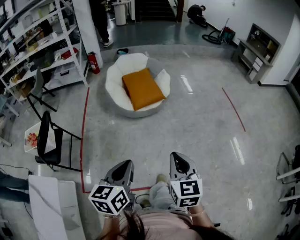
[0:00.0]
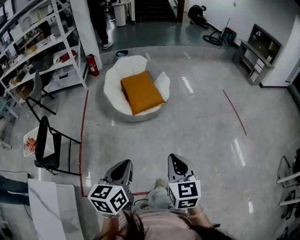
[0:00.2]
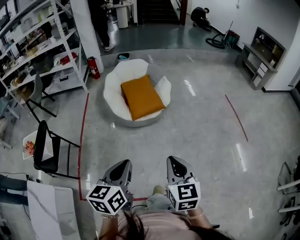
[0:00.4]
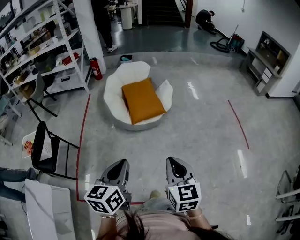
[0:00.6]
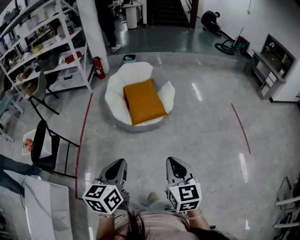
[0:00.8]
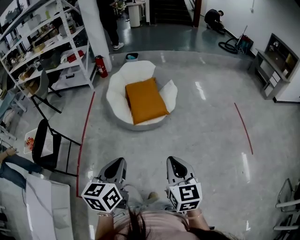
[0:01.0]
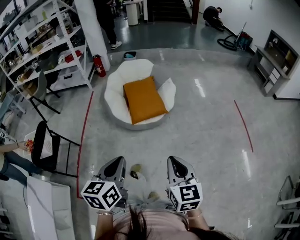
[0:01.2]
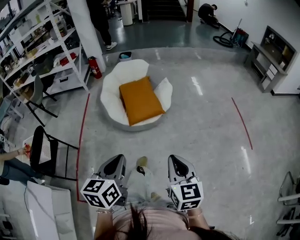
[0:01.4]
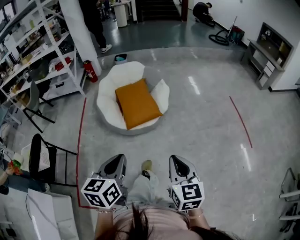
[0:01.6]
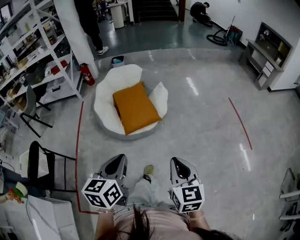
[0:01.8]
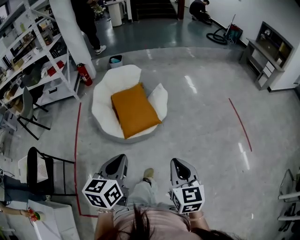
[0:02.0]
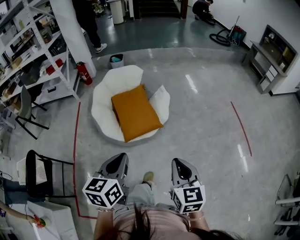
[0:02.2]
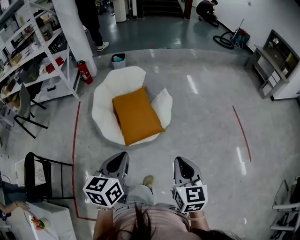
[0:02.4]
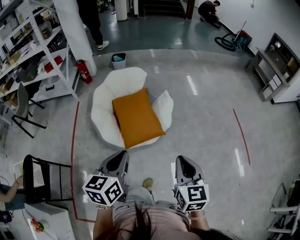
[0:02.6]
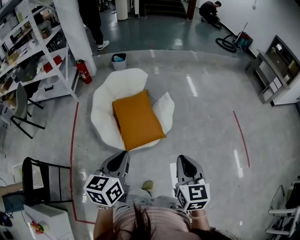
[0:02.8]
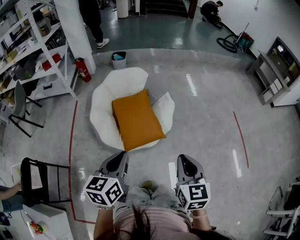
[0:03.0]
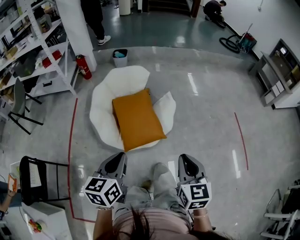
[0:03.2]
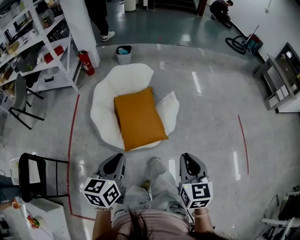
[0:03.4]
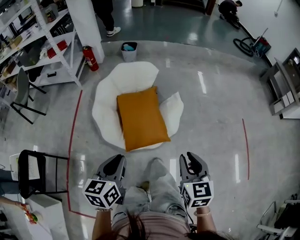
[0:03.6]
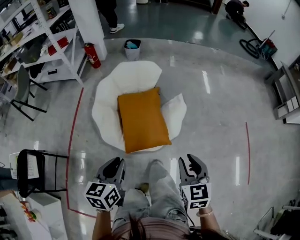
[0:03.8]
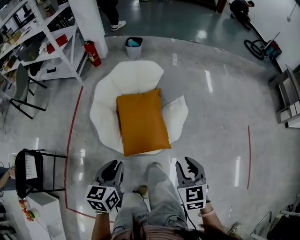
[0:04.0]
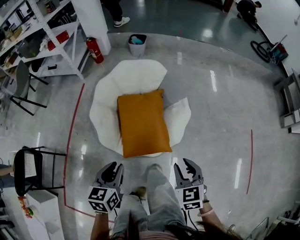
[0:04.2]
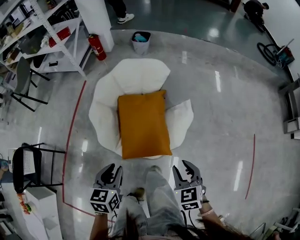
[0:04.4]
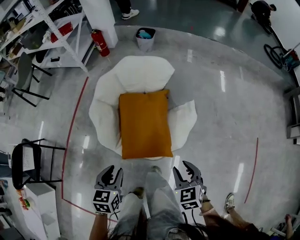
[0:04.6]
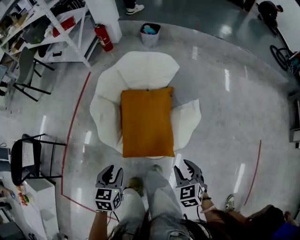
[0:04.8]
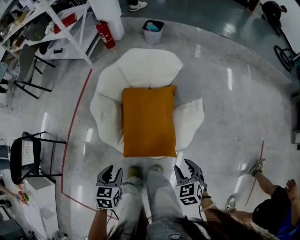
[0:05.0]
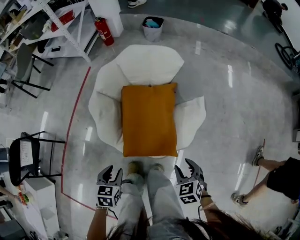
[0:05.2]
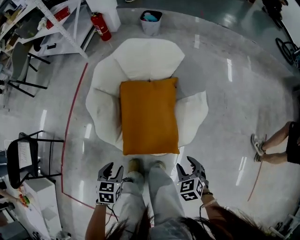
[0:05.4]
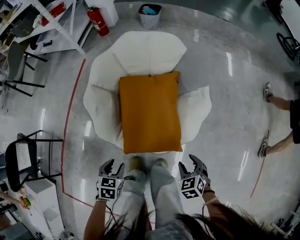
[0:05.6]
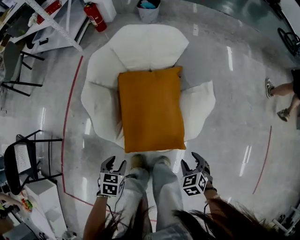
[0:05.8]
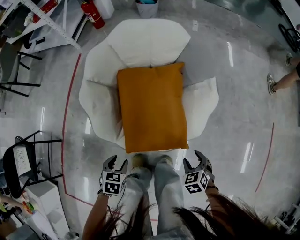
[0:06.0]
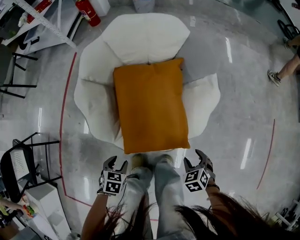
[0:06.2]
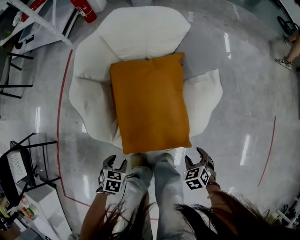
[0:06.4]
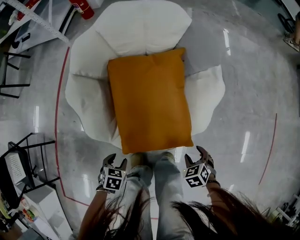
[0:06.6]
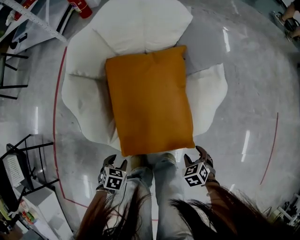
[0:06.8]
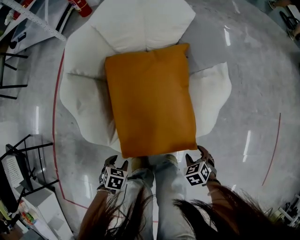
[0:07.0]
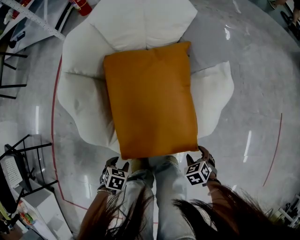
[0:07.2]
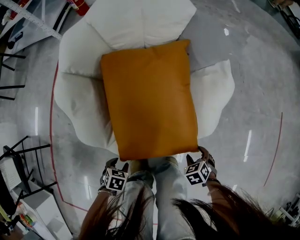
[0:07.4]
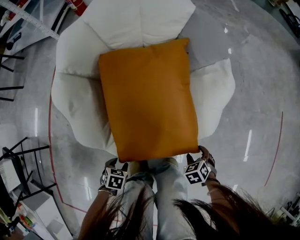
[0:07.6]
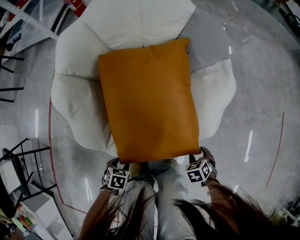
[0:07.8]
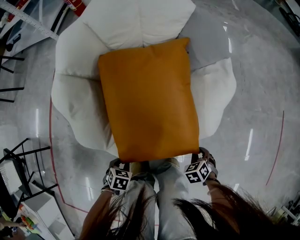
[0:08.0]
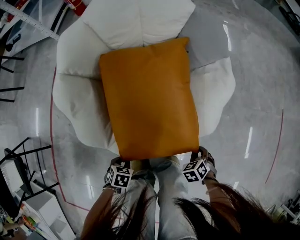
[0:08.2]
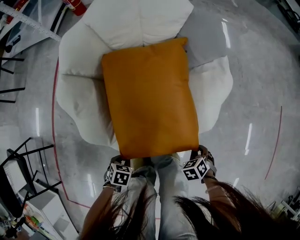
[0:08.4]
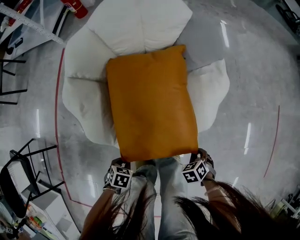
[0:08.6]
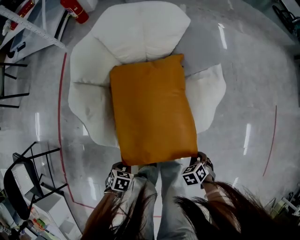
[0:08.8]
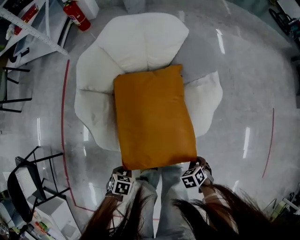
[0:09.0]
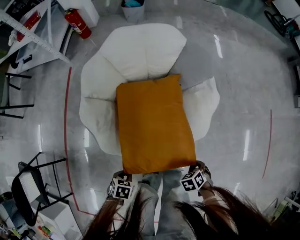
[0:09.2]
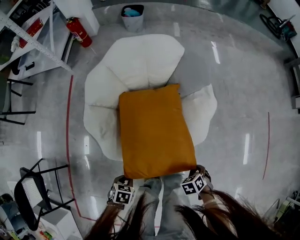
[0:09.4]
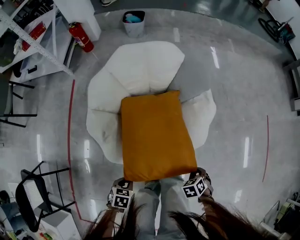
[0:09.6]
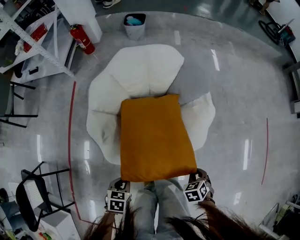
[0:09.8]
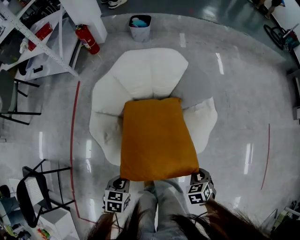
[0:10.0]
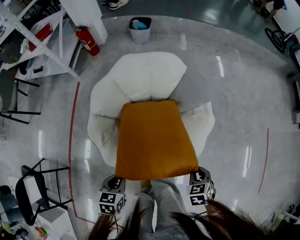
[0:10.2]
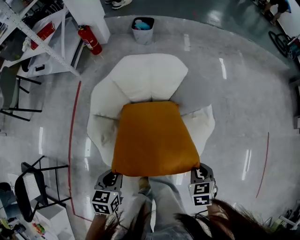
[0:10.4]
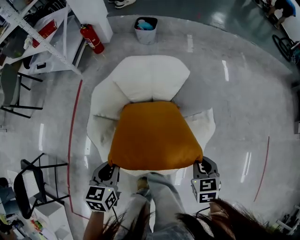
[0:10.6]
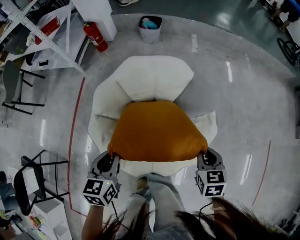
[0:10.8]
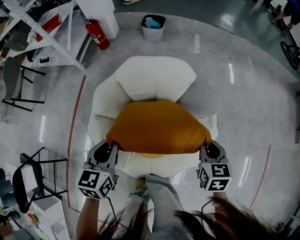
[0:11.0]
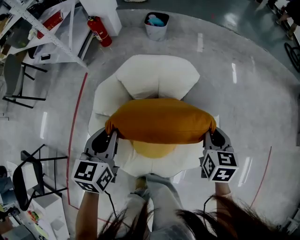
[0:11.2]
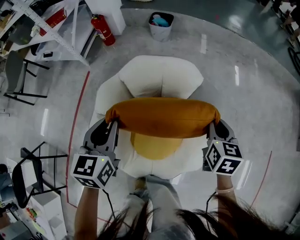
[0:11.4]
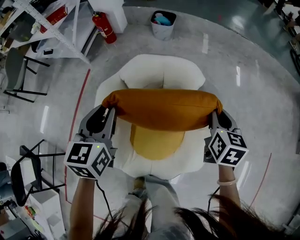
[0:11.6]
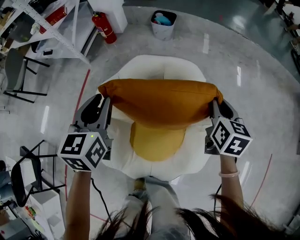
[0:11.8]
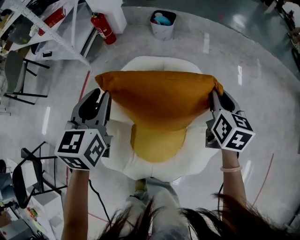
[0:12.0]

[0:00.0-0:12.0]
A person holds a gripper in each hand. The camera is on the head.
0:00.0 to 0:01.6: The grippers both shift forward and to the right by approximately 30 cm.
0:01.6 to 0:03.0: Both grippers travel together forward, roughly 30 cm.
0:03.0 to 0:04.4: The right gripper goes about 30 cm forward and downward, changes its angle by roughly 30 degrees, and opens. Meanwhile the left gripper shifts roughly 25 cm downward and forward, changes its angle by approximately 20 degrees, and opens.
0:04.4 to 0:06.0: The two grippers go roughly 30 cm downward. The left gripper changes its angle by approximately 30 degrees, and opens. The right gripper swivels approximately 20 degrees, and opens its fingers.
0:06.0 to 0:07.6: The two grippers go some 25 cm downward.
0:07.6 to 0:09.0: Both grippers move upward, about 15 cm. The right gripper closes its fingers, while the left gripper closes up.
0:09.0 to 0:10.4: The two grippers go roughly 25 cm upward. The left gripper turns by roughly 40 degrees, while the right gripper changes its angle by roughly 30 degrees.
0:10.4 to 0:12.0: The left gripper shifts roughly 35 cm forward and upward, and turns by about 30 degrees. The right gripper shifts some 40 cm forward, and turns by some 30 degrees.

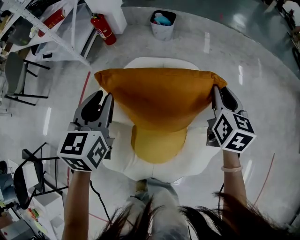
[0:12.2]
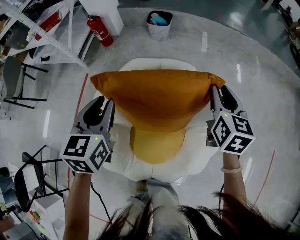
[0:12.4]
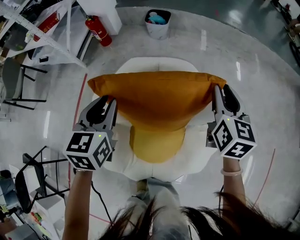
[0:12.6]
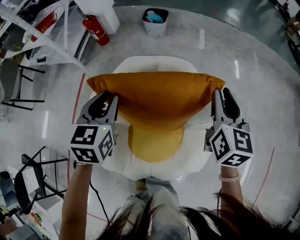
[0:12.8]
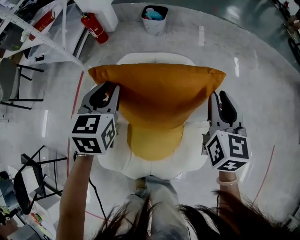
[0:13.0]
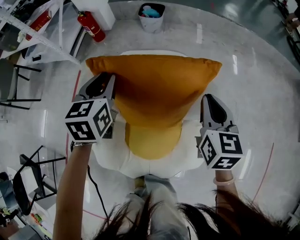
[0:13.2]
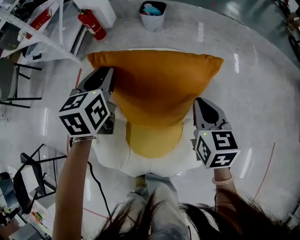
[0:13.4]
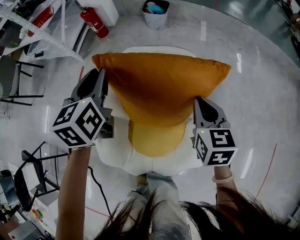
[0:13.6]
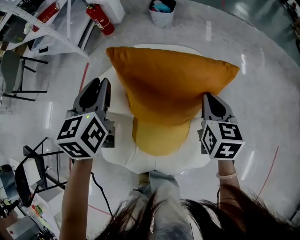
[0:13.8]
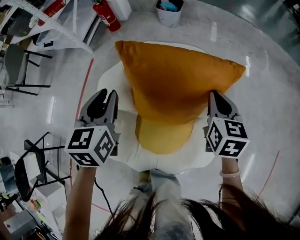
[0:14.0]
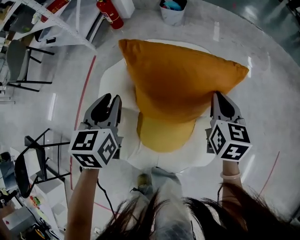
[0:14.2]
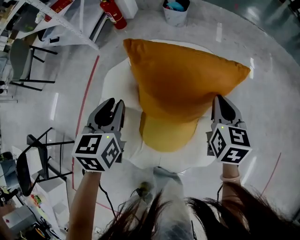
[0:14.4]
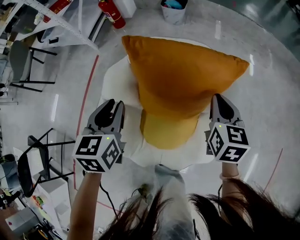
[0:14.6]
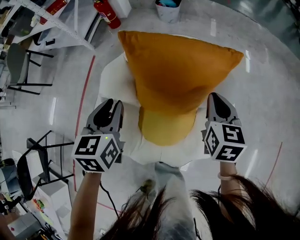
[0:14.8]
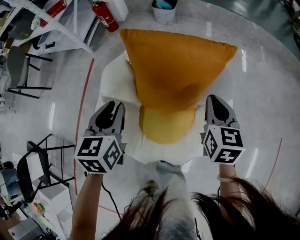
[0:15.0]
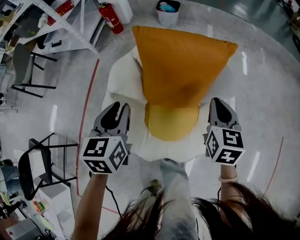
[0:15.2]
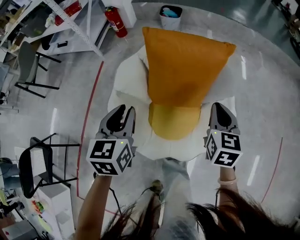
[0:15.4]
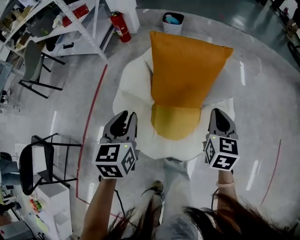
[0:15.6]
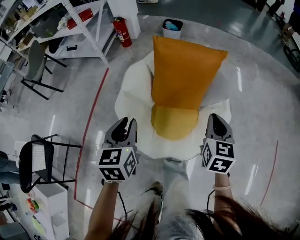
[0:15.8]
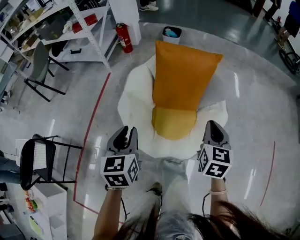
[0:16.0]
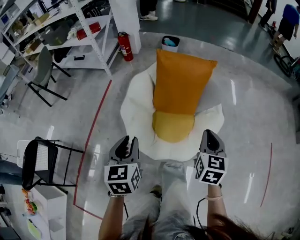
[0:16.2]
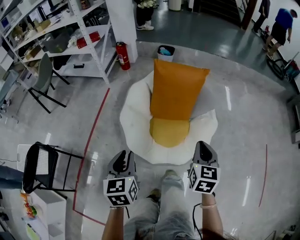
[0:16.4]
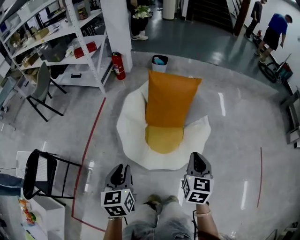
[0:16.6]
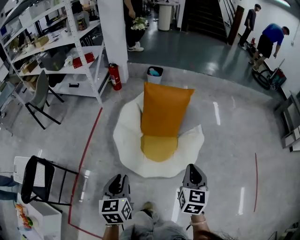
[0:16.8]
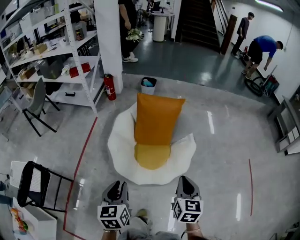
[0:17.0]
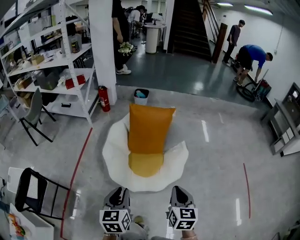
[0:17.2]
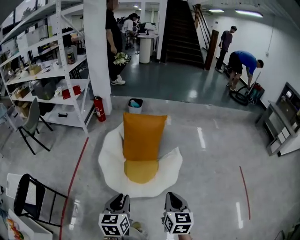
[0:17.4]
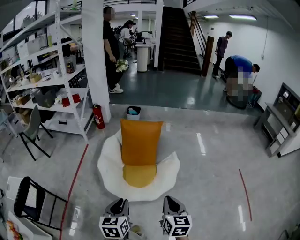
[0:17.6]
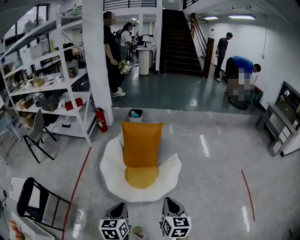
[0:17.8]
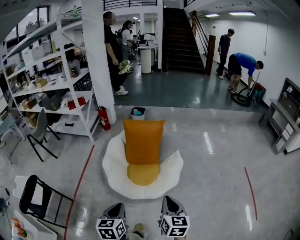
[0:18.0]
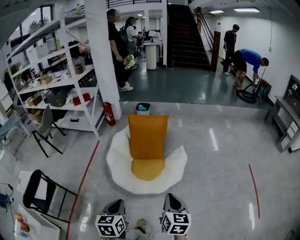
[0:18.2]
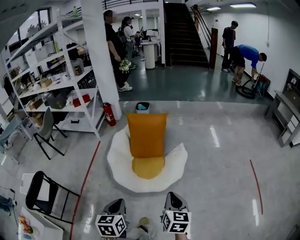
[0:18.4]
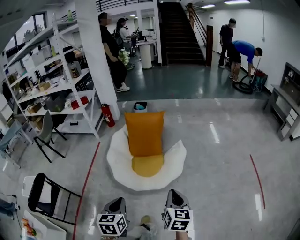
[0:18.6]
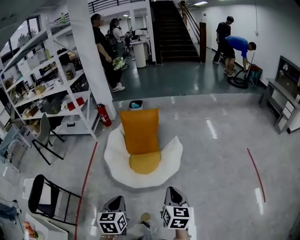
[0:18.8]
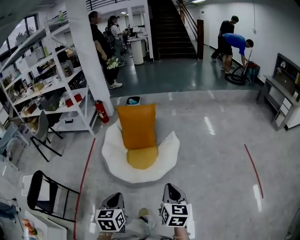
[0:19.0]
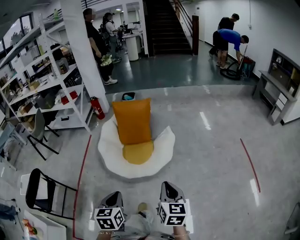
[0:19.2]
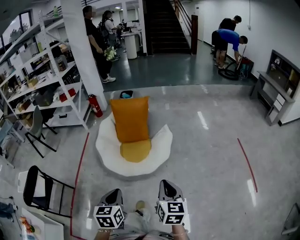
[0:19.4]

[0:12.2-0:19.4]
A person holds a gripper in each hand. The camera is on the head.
0:12.2 to 0:13.6: The left gripper is displaced forward by about 5 cm. Meanwhile the right gripper goes about 10 cm backward and downward.
0:13.6 to 0:15.0: The right gripper goes approximately 10 cm backward. Meanwhile the left gripper is displaced backward by roughly 20 cm.
0:15.0 to 0:16.6: The pair of grippers is taken backward, some 40 cm. The right gripper heads upward, covering some 20 cm.
0:16.6 to 0:18.0: The right gripper moves backward, roughly 20 cm. Meanwhile the left gripper goes about 20 cm backward and to the right.
0:18.0 to 0:19.4: Both grippers move backward and to the right, about 15 cm.

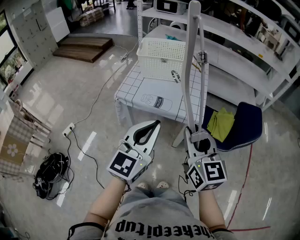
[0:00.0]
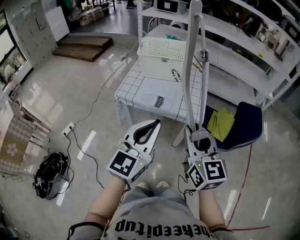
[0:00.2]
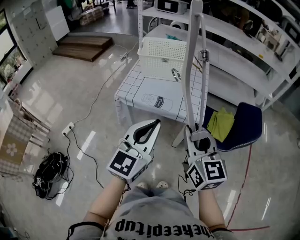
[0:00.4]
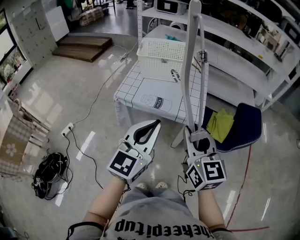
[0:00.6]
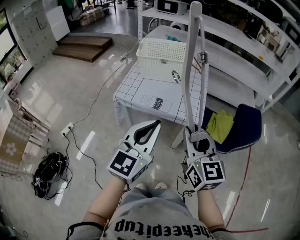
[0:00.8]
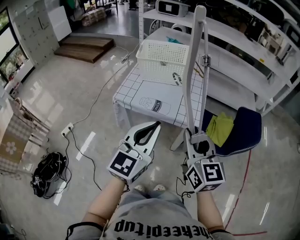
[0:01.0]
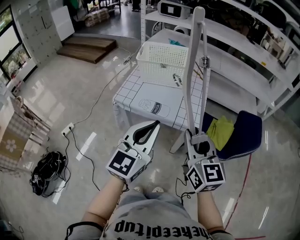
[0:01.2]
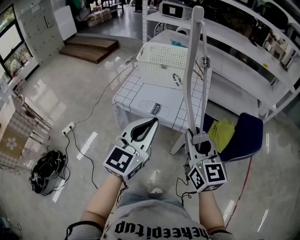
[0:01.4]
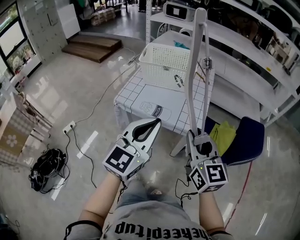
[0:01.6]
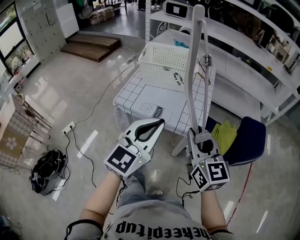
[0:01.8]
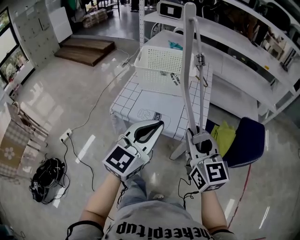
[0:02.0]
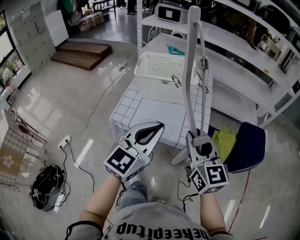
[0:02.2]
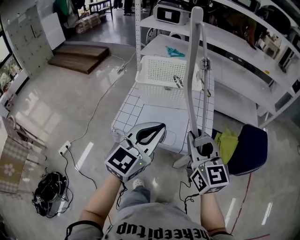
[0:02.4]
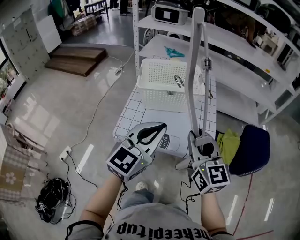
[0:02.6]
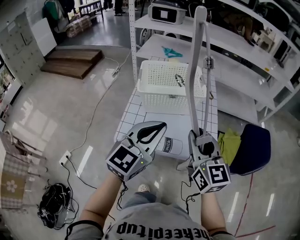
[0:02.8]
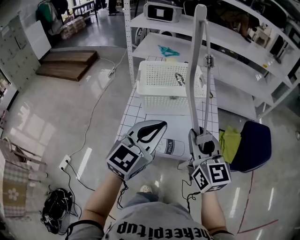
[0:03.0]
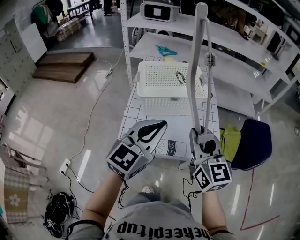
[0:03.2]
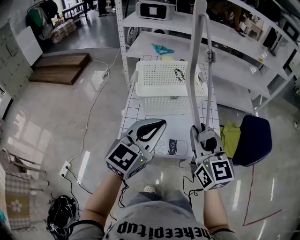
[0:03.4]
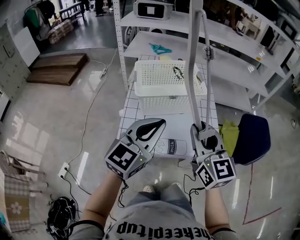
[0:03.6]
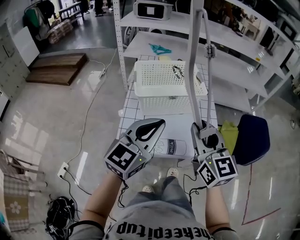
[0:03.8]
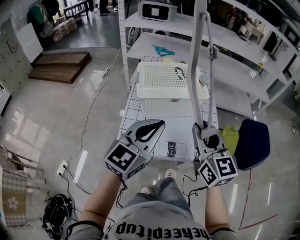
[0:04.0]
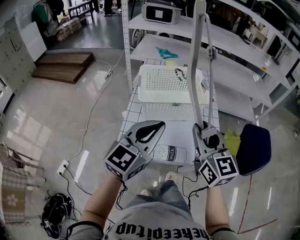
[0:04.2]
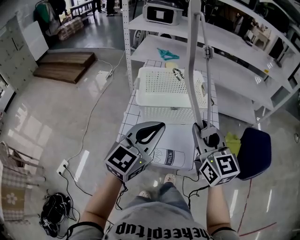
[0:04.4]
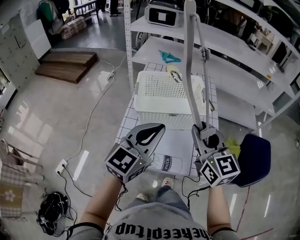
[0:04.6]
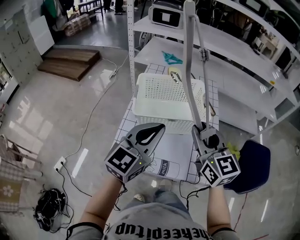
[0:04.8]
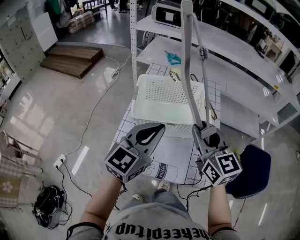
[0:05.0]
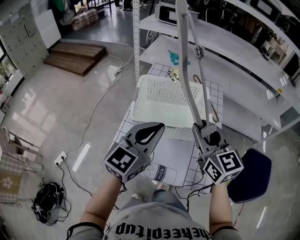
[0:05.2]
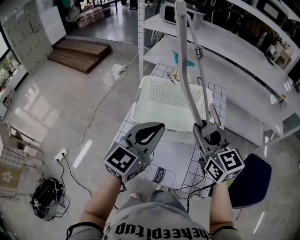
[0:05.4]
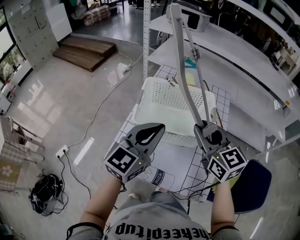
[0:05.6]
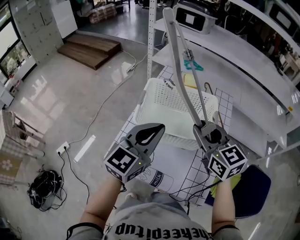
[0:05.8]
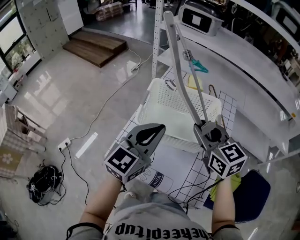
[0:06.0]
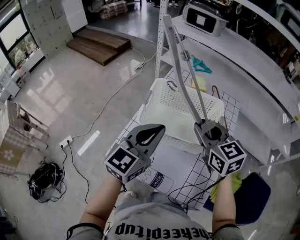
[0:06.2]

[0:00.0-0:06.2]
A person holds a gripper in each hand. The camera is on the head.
0:00.0 to 0:01.6: Both grippers move forward, approximately 5 cm.
0:01.6 to 0:03.2: Both grippers move forward and to the left, roughly 25 cm. The left gripper swivels roughly 20 degrees.
0:03.2 to 0:04.6: Both grippers travel together forward, roughly 10 cm.
0:04.6 to 0:06.2: The right gripper travels forward by about 15 cm, and rotates some 30 degrees, while the left gripper goes approximately 10 cm forward.
